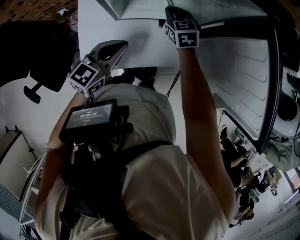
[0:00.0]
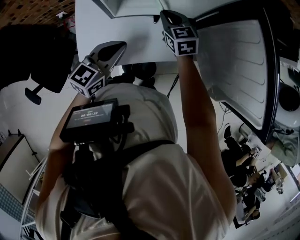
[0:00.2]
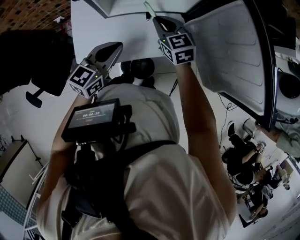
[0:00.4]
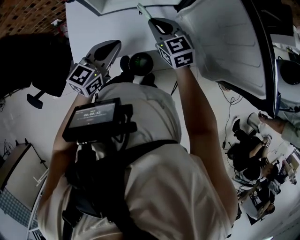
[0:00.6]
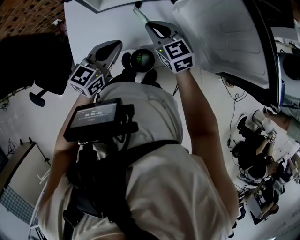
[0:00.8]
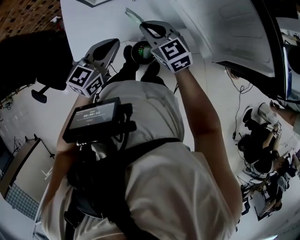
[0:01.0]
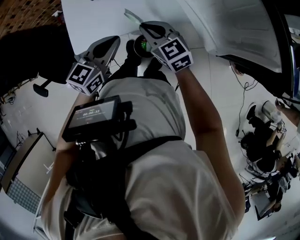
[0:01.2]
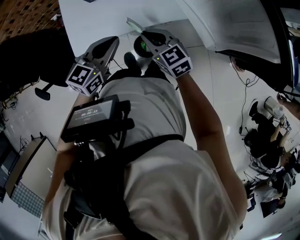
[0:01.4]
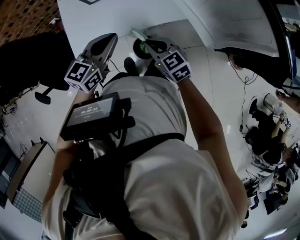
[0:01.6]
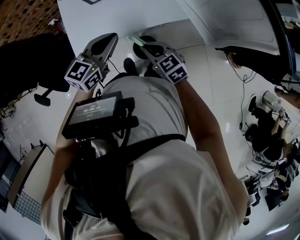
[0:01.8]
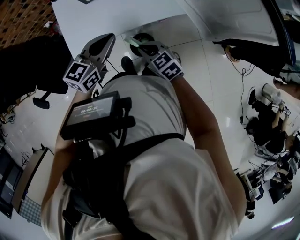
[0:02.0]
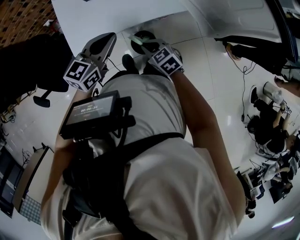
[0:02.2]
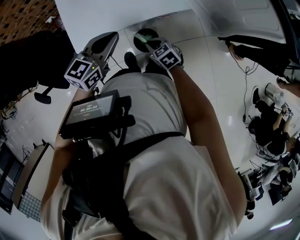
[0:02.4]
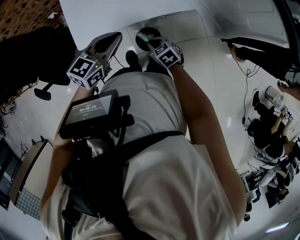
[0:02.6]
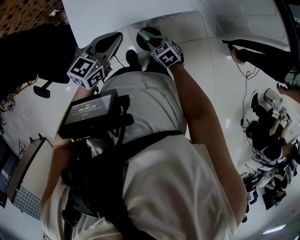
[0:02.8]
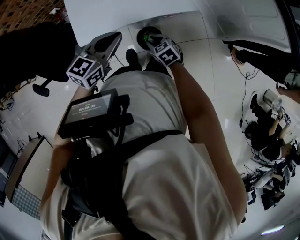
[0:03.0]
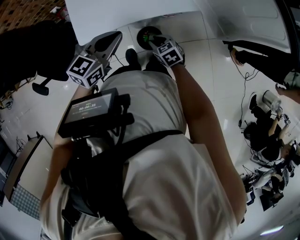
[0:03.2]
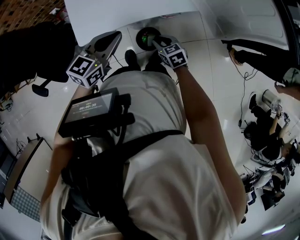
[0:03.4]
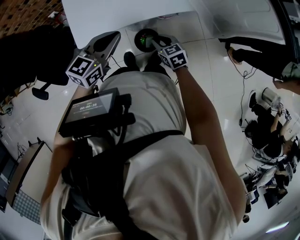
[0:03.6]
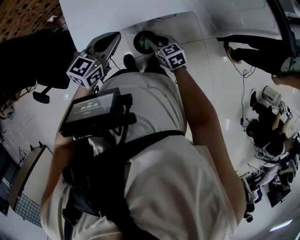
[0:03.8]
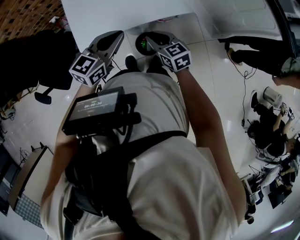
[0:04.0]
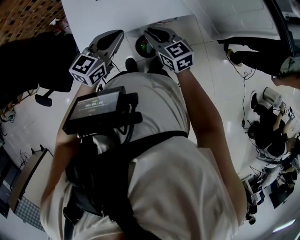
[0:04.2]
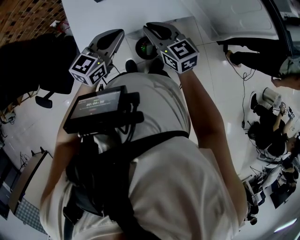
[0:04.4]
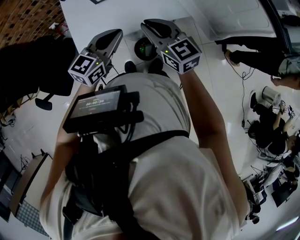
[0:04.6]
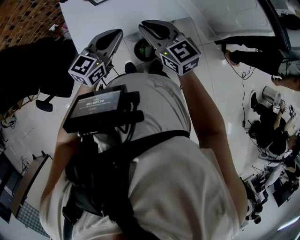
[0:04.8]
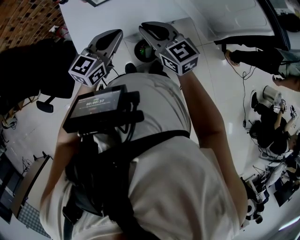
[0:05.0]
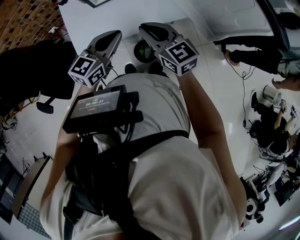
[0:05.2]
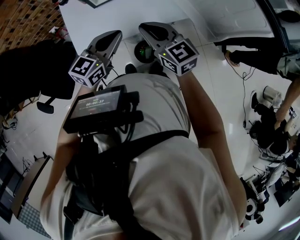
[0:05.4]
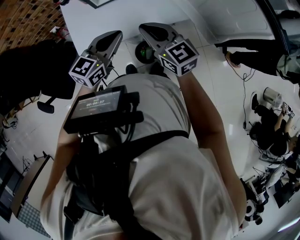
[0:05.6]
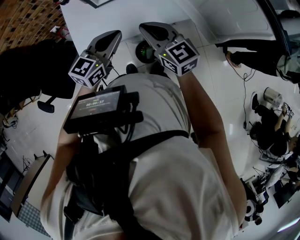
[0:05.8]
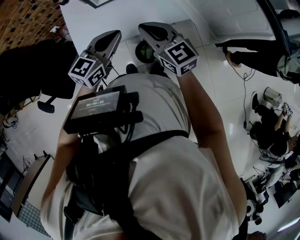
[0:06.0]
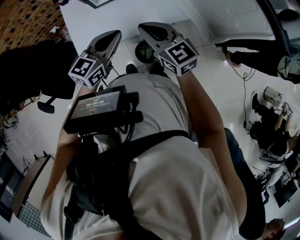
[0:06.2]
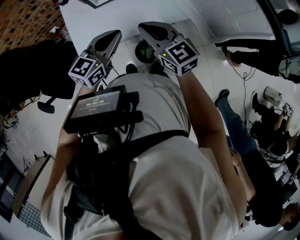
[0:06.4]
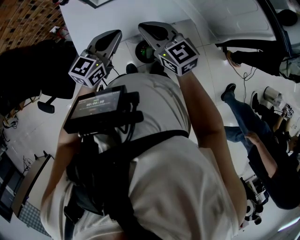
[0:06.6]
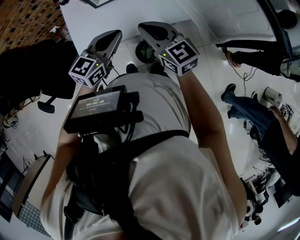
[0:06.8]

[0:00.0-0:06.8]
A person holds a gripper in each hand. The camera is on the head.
0:00.0 to 0:01.4: The right gripper shifts approximately 30 cm backward, and rotates approximately 20 degrees; the left gripper is displaced backward and to the right by roughly 15 cm.
0:01.4 to 0:02.8: The right gripper shifts approximately 15 cm downward and backward, and changes its angle by some 30 degrees. The left gripper shifts by approximately 5 cm.
0:02.8 to 0:04.0: The right gripper goes some 10 cm upward, and changes its angle by about 20 degrees.
0:04.0 to 0:05.4: The right gripper shifts approximately 15 cm upward, and swivels some 20 degrees.
0:05.4 to 0:06.8: Both grippers stay put.

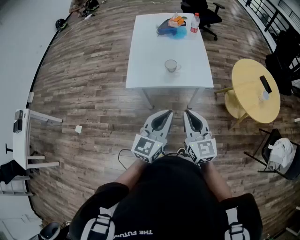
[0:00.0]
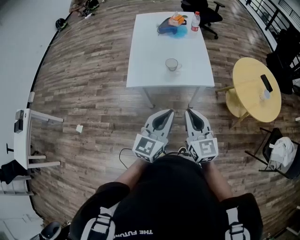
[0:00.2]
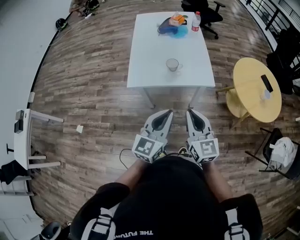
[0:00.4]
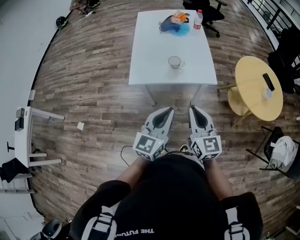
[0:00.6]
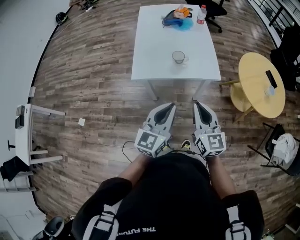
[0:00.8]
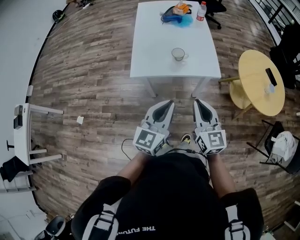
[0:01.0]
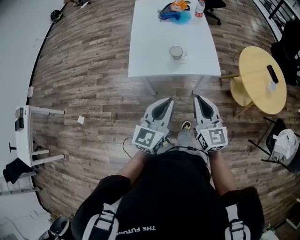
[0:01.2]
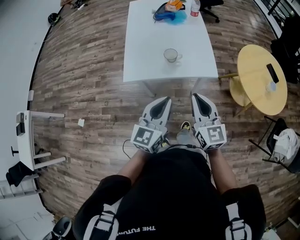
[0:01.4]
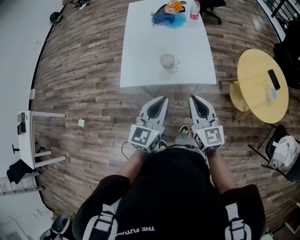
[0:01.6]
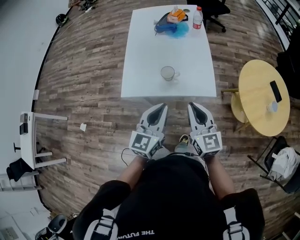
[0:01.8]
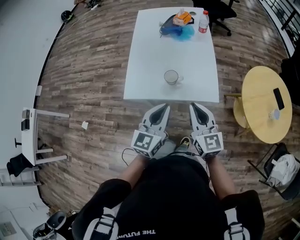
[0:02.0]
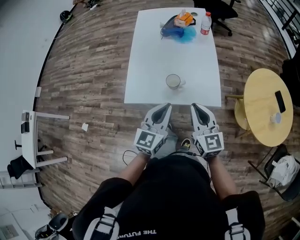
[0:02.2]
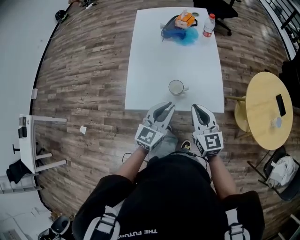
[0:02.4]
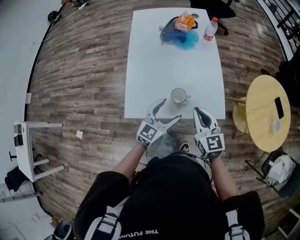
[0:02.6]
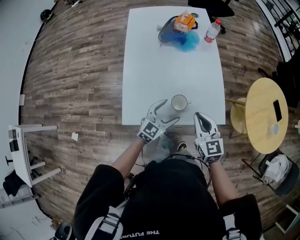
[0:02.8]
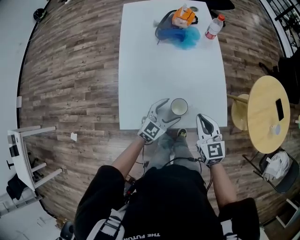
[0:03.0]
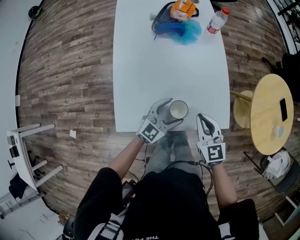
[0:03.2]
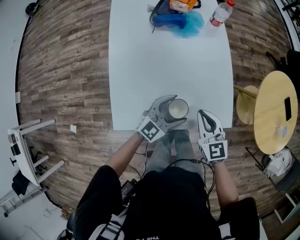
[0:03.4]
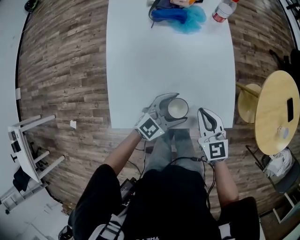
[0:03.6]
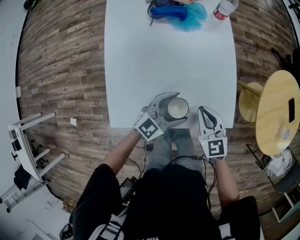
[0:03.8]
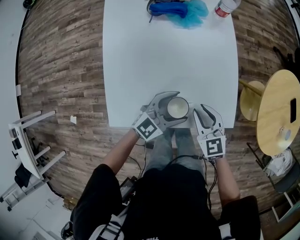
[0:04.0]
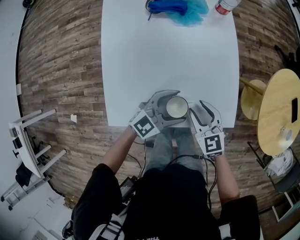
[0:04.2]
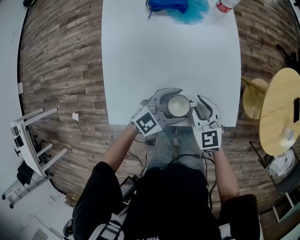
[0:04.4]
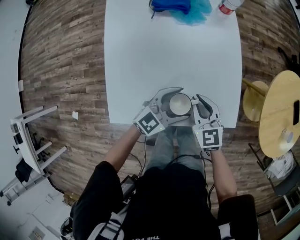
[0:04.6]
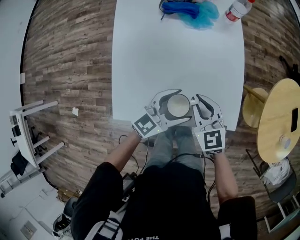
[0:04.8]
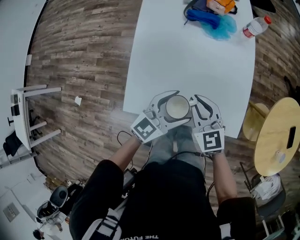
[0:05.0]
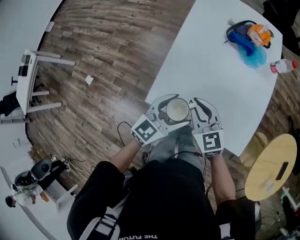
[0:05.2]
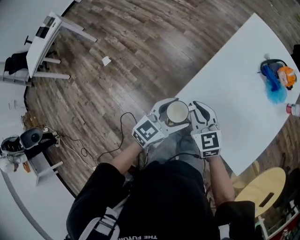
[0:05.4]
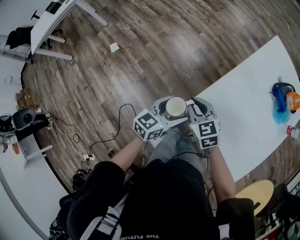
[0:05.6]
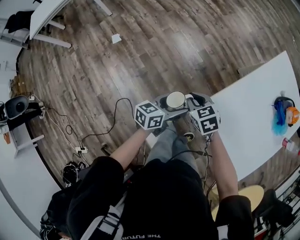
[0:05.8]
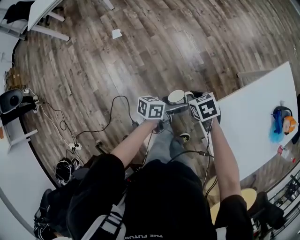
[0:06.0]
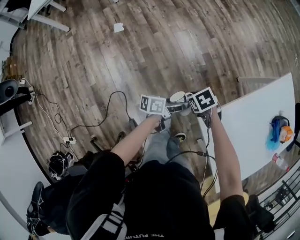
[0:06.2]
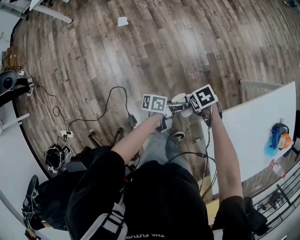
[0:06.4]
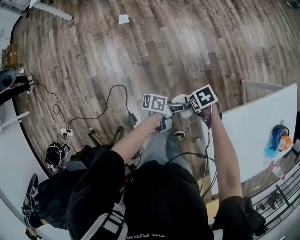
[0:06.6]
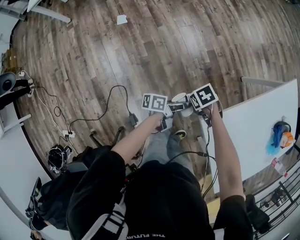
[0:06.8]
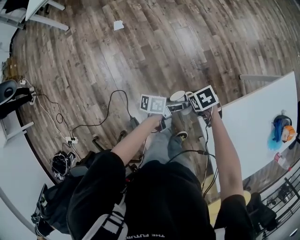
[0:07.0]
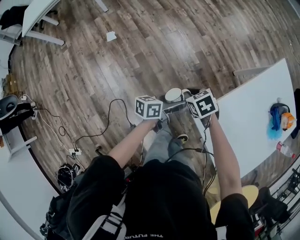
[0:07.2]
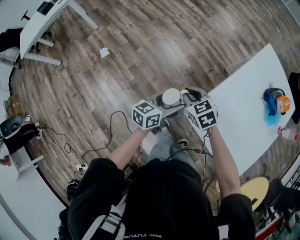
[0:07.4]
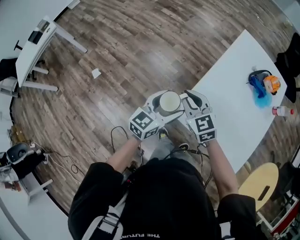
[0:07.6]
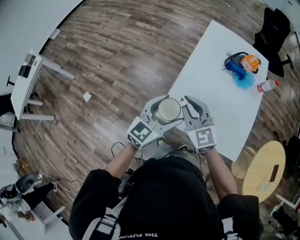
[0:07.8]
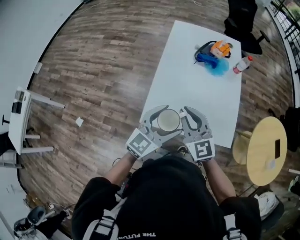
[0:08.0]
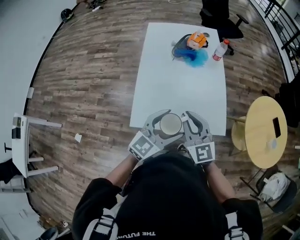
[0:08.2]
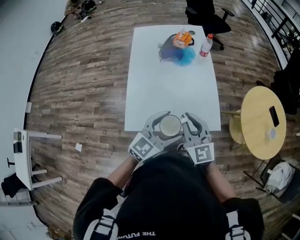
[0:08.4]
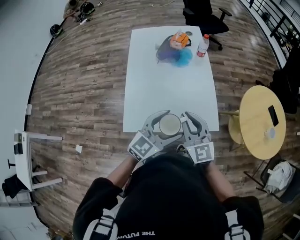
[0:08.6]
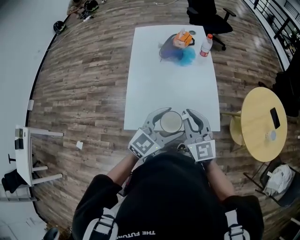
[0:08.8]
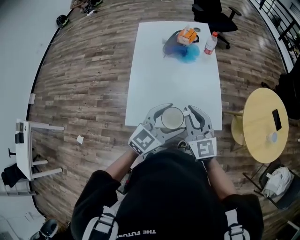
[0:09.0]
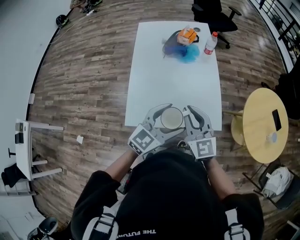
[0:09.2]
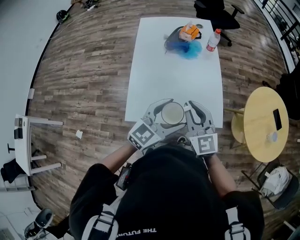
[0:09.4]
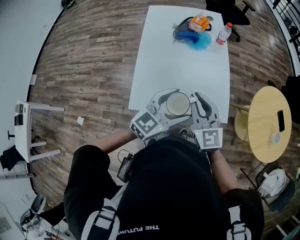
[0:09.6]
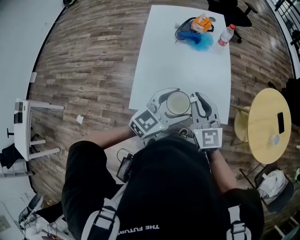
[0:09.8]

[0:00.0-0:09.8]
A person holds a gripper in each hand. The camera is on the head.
0:00.0 to 0:01.4: Both grippers travel together forward, roughly 5 cm.
0:01.4 to 0:02.8: Both grippers move forward and downward, about 30 cm. The left gripper rotates some 30 degrees, and opens up.
0:02.8 to 0:04.2: The right gripper travels downward and forward by roughly 15 cm, and opens. Meanwhile the left gripper is displaced forward by about 5 cm, and changes its angle by approximately 20 degrees.
0:04.2 to 0:05.6: The right gripper ends up some 40 cm from where it was, changes its angle by about 50 degrees, and closes, while the left gripper changes place by about 40 cm, and changes its angle by about 70 degrees.
0:05.6 to 0:07.0: The grippers both shift downward by some 15 cm. The right gripper points its fingers about 40 degrees further downward, while the left gripper twists about 60 degrees counterclockwise, seen from behind.
0:07.0 to 0:08.4: The two grippers travel together, approximately 50 cm. The right gripper tips its fingers upward by some 70 degrees. Meanwhile the left gripper rotates around the line of its fingers by roughly 90 degrees, clockwise from behind.
0:08.4 to 0:09.8: The grippers move only a little.

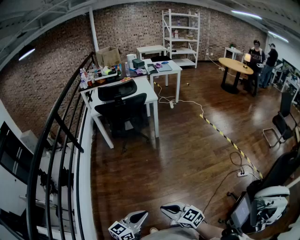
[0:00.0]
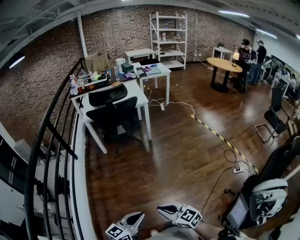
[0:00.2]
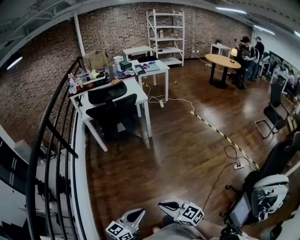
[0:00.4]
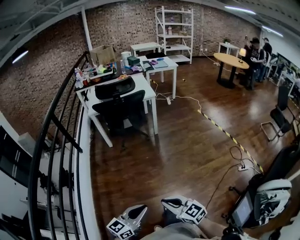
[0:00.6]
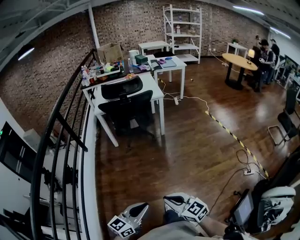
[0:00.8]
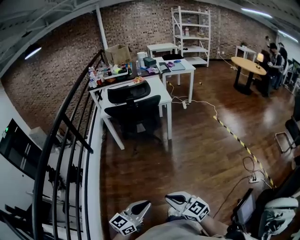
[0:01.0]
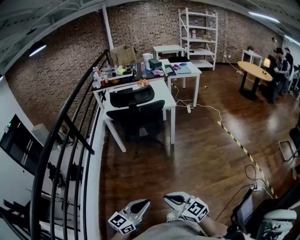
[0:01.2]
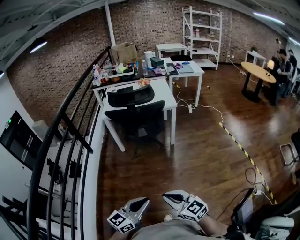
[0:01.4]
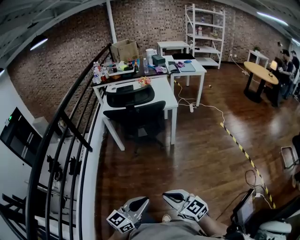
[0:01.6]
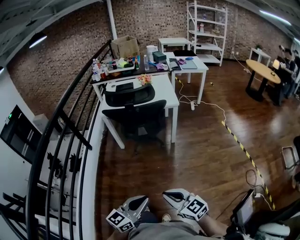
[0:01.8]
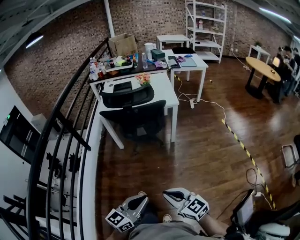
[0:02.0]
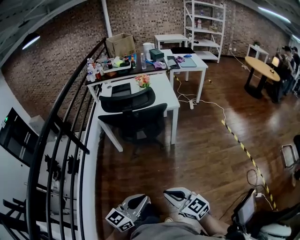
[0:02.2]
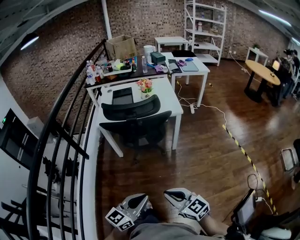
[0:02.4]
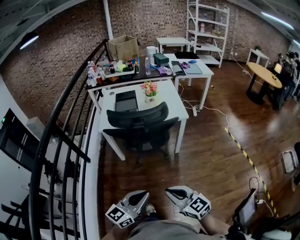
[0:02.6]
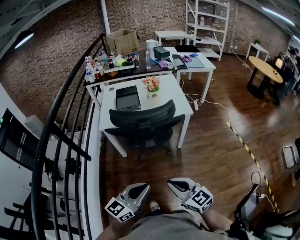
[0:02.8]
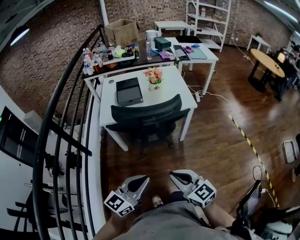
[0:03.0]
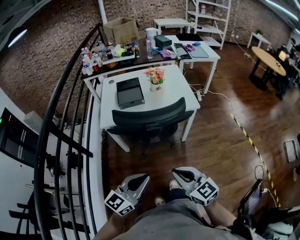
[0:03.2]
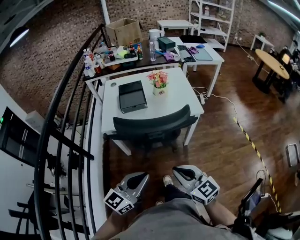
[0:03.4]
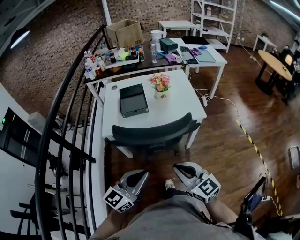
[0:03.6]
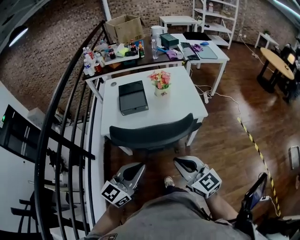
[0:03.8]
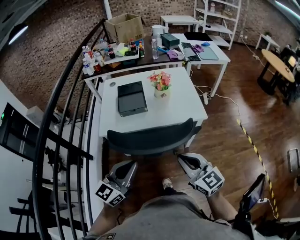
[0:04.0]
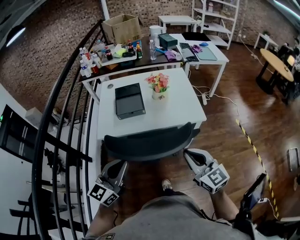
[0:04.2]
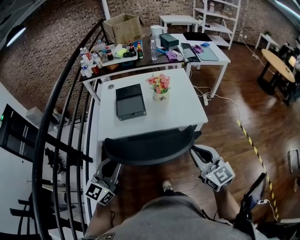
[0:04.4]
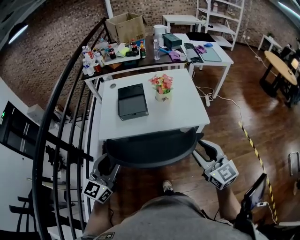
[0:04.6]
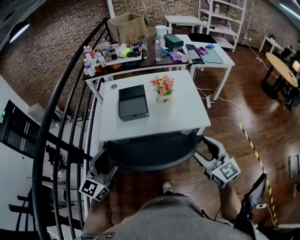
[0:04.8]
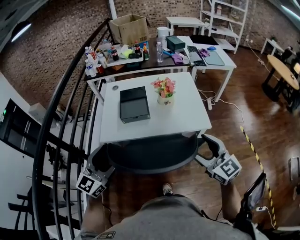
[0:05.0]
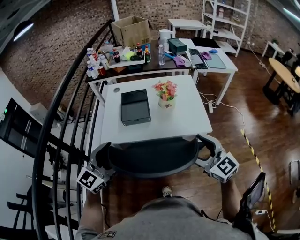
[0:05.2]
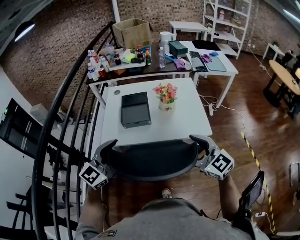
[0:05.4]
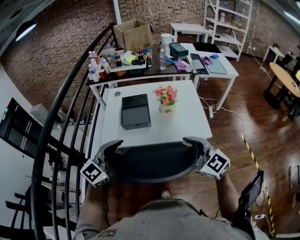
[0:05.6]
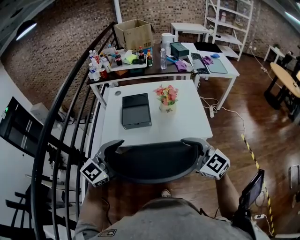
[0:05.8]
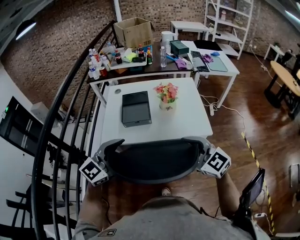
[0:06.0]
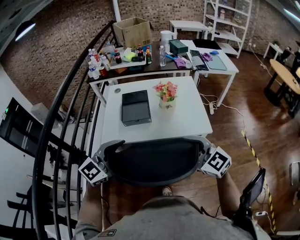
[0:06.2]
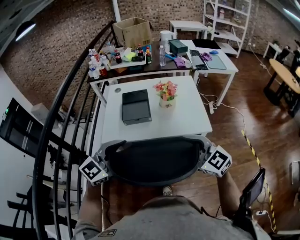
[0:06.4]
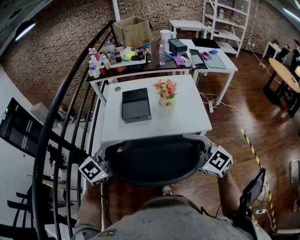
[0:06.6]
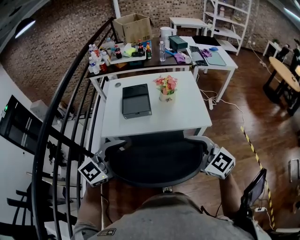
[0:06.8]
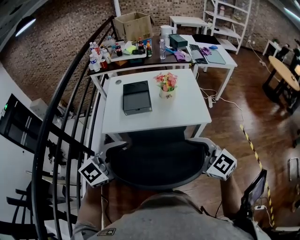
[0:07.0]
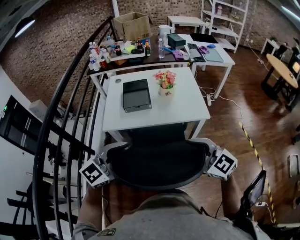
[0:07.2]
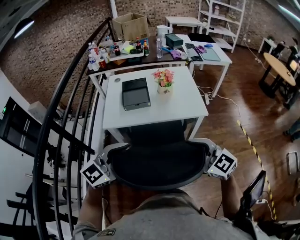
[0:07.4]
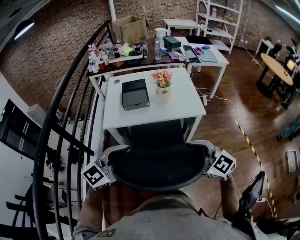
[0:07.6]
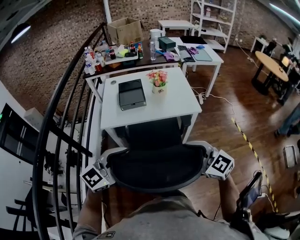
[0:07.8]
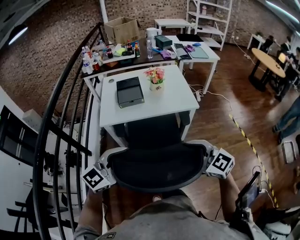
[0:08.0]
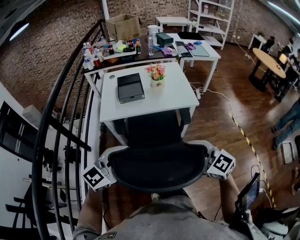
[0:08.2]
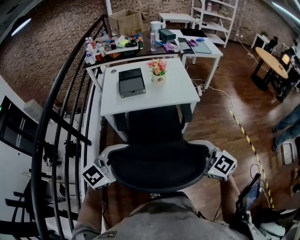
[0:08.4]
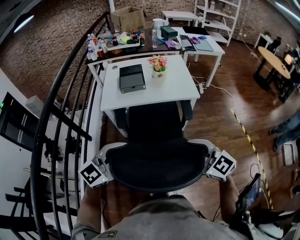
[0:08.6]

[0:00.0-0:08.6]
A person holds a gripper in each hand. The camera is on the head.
0:00.0 to 0:01.4: The two grippers go approximately 20 cm forward.
0:01.4 to 0:02.8: Both grippers travel together forward, roughly 30 cm.
0:02.8 to 0:04.4: The left gripper travels forward and to the left by about 30 cm, and rotates about 20 degrees, while the right gripper is displaced forward by approximately 30 cm.
0:04.4 to 0:05.8: The left gripper goes about 5 cm forward, swivels roughly 20 degrees, and opens. Meanwhile the right gripper is displaced forward and to the left by approximately 10 cm, changes its angle by some 30 degrees, and opens up.
0:05.8 to 0:07.2: The two grippers go about 10 cm backward.
0:07.2 to 0:08.6: The two grippers go some 15 cm backward.
